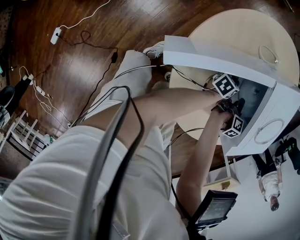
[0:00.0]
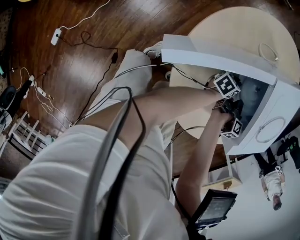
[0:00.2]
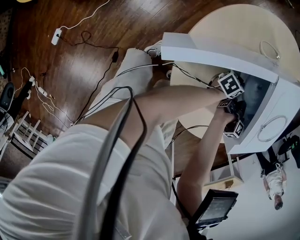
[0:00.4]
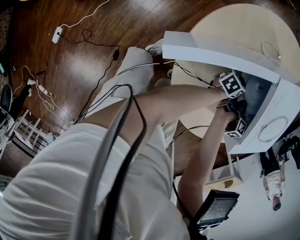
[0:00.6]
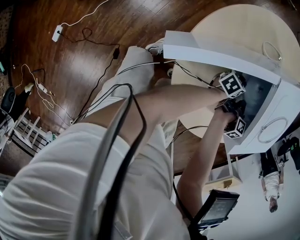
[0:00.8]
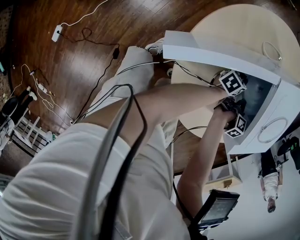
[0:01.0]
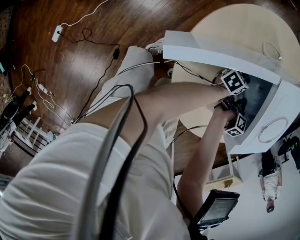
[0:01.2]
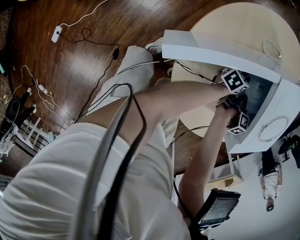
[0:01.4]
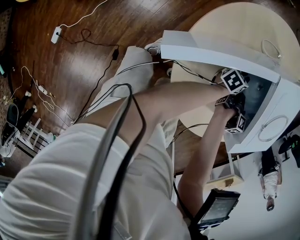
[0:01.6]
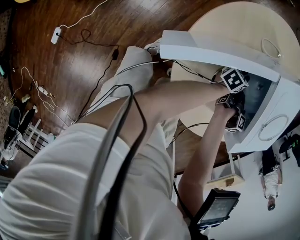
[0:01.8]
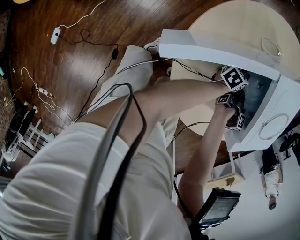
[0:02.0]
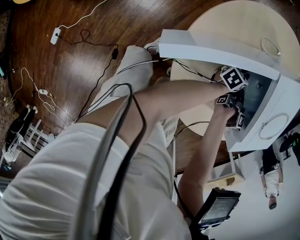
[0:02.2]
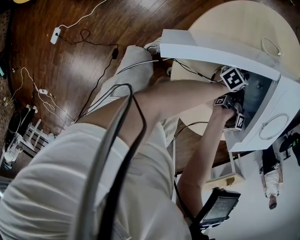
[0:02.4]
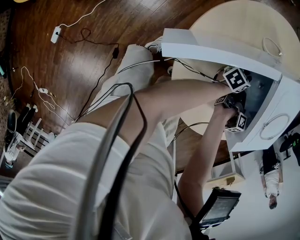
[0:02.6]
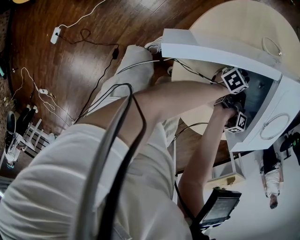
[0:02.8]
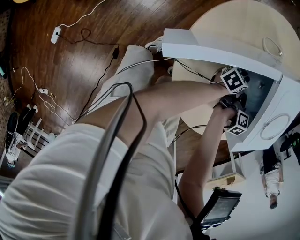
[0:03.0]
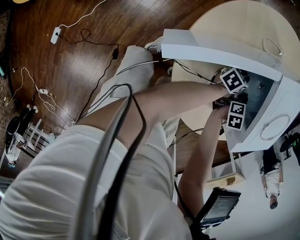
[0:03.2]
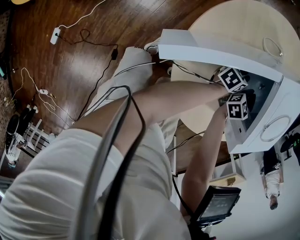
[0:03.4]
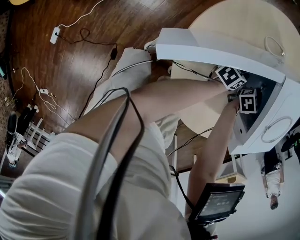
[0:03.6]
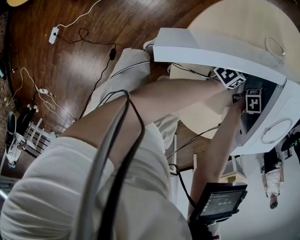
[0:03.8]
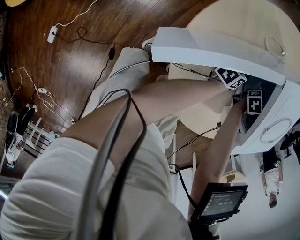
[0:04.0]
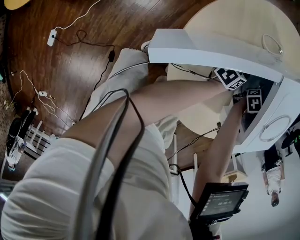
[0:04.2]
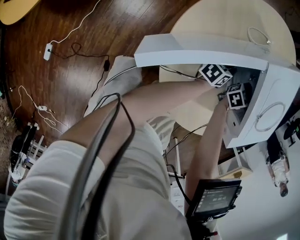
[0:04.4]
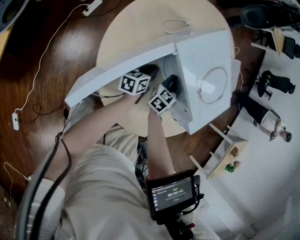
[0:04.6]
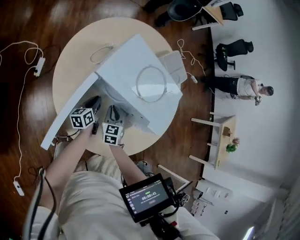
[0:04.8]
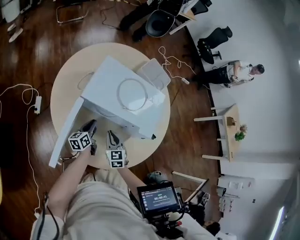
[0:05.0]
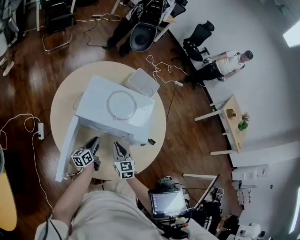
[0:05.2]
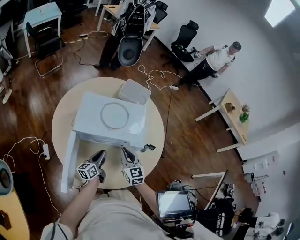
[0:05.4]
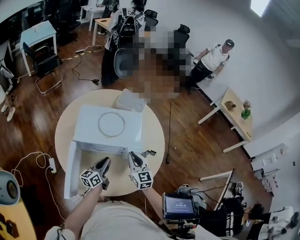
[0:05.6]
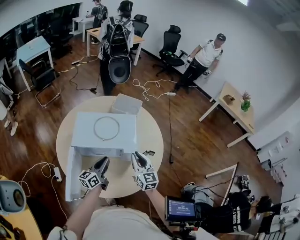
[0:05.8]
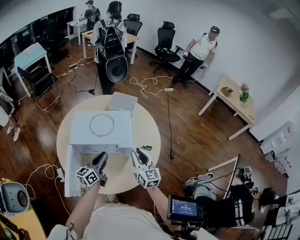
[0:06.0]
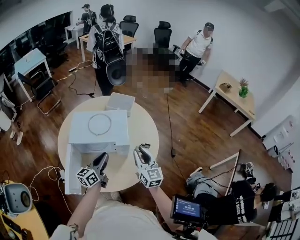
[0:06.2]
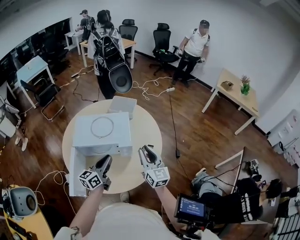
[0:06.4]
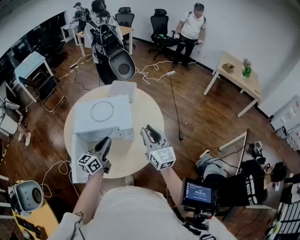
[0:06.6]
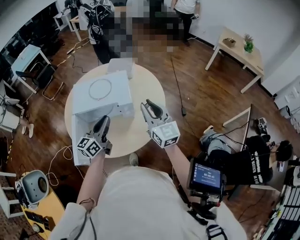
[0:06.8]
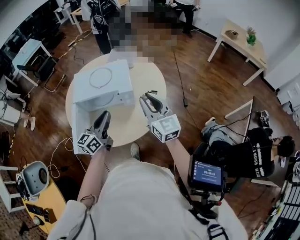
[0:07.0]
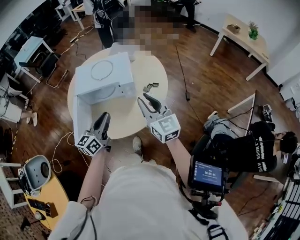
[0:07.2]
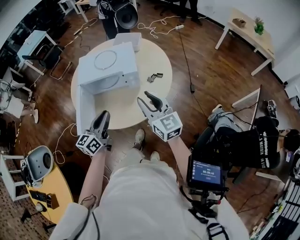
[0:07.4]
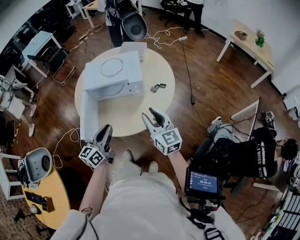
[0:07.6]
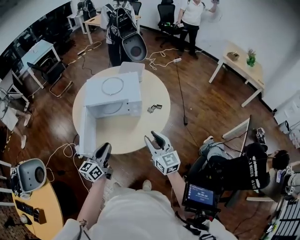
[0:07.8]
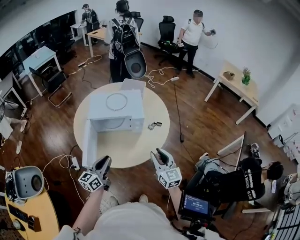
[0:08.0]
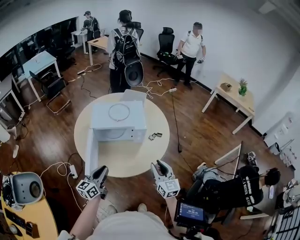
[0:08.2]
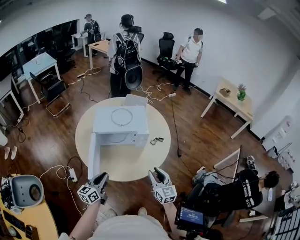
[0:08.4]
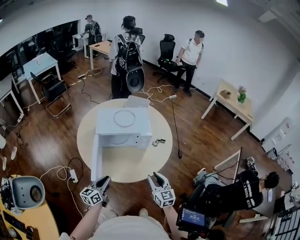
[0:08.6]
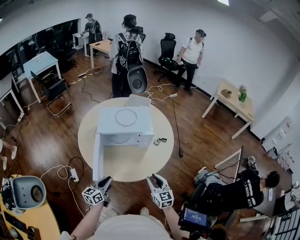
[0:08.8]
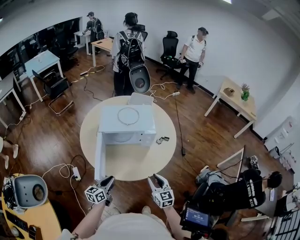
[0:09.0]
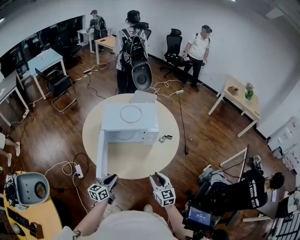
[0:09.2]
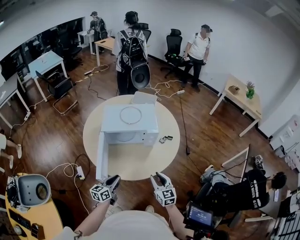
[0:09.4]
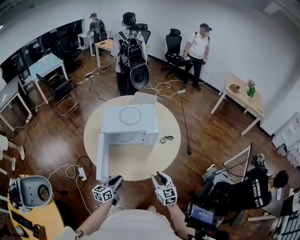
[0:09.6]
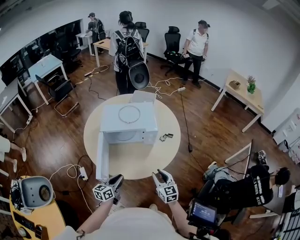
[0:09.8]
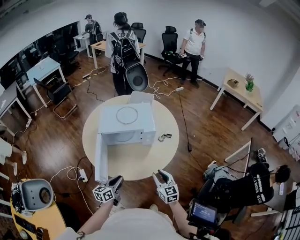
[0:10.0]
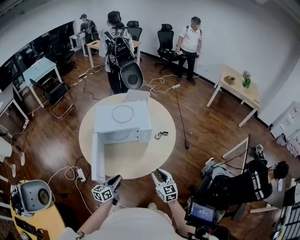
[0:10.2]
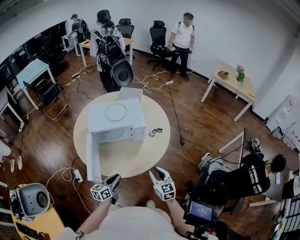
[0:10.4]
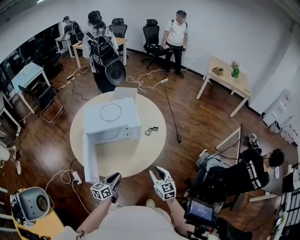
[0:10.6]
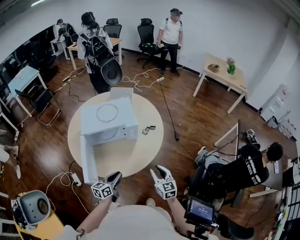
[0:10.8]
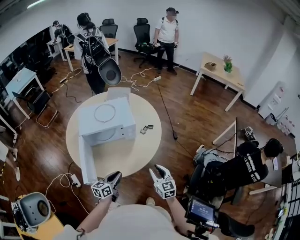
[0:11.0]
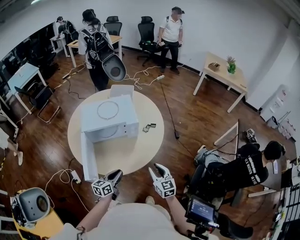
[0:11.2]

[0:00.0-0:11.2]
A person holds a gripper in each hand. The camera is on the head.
0.0 to 1.6 s: The right gripper closes its fingers.
1.6 to 3.2 s: The right gripper twists roughly 60 degrees counterclockwise, seen from behind.
3.2 to 4.8 s: The right gripper shifts about 10 cm to the left and upward, and goes forward and returns, some 10 cm each way. The left gripper moves upward and to the left, approximately 10 cm.
4.8 to 6.4 s: The two grippers go approximately 50 cm upward and to the right. The right gripper tilts its fingers some 40 degrees upward. Meanwhile the left gripper swivels roughly 50 degrees.
6.4 to 8.0 s: The right gripper goes about 20 cm backward. The left gripper goes some 25 cm backward and to the left.
8.0 to 9.6 s: The left gripper shifts roughly 10 cm downward, while the right gripper is displaced downward and to the left by some 15 cm.
9.6 to 11.2 s: The two grippers go about 10 cm to the right.

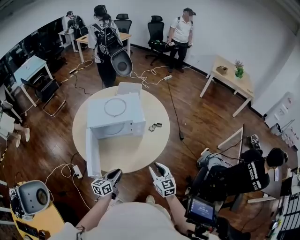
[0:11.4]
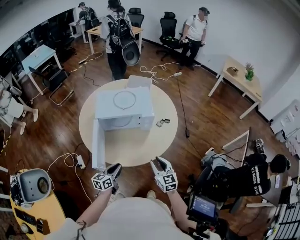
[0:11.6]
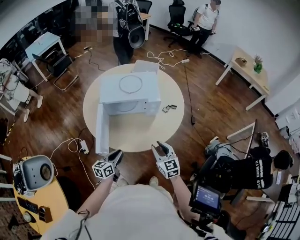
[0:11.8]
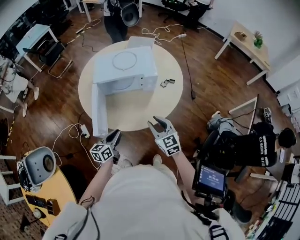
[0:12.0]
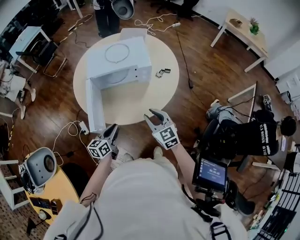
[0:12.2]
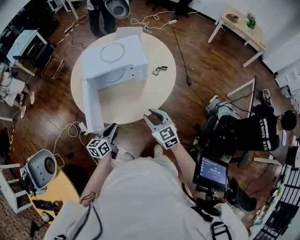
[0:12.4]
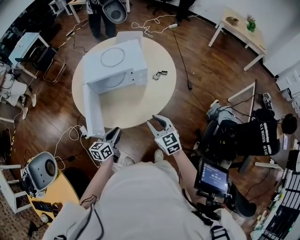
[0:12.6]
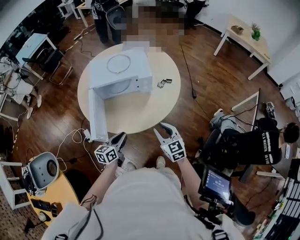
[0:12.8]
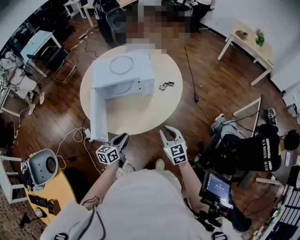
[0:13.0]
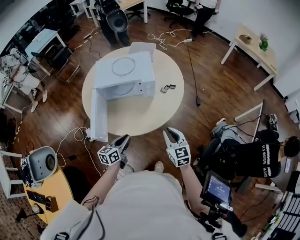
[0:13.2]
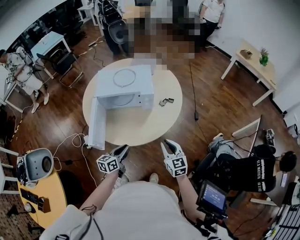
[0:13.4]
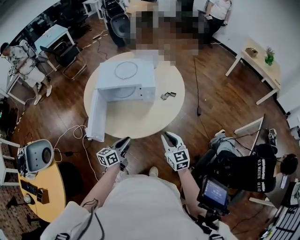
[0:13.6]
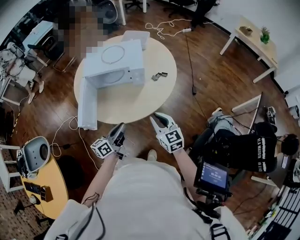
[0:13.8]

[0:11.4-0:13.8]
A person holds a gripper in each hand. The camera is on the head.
12.6 to 13.8 s: The left gripper goes about 10 cm to the right and upward, and turns by approximately 20 degrees; the right gripper heads to the right, covering roughly 10 cm.

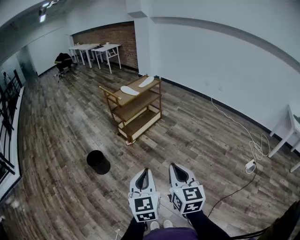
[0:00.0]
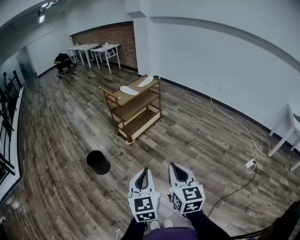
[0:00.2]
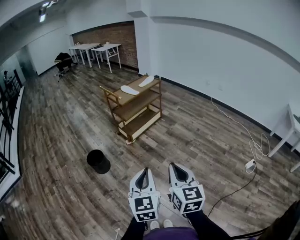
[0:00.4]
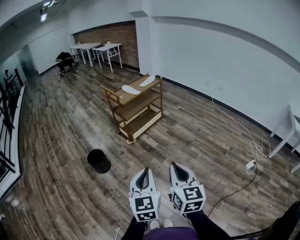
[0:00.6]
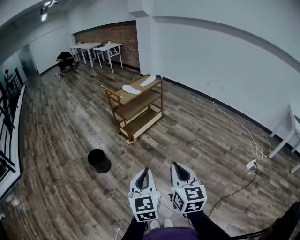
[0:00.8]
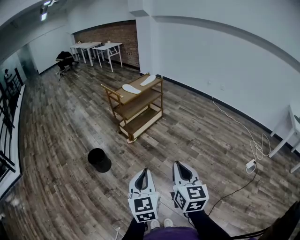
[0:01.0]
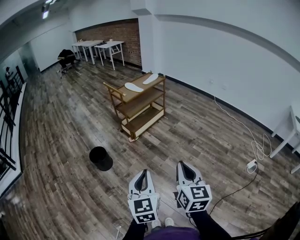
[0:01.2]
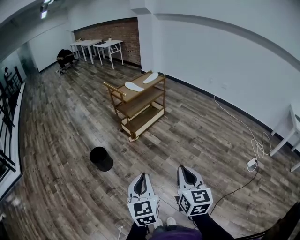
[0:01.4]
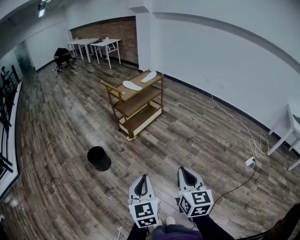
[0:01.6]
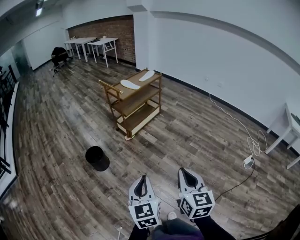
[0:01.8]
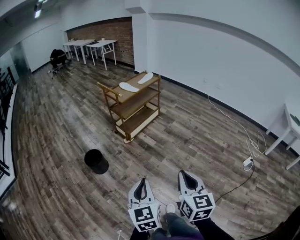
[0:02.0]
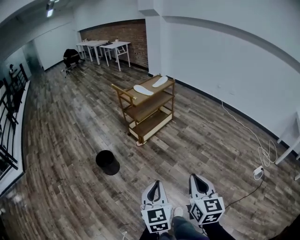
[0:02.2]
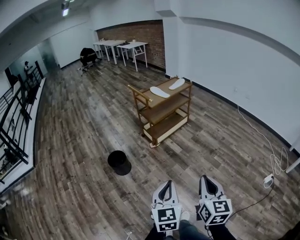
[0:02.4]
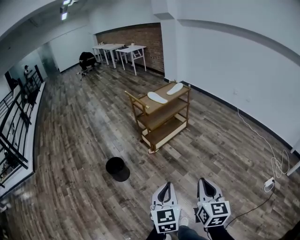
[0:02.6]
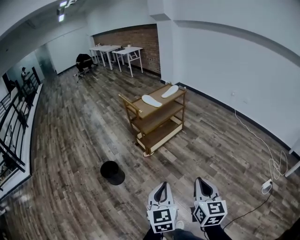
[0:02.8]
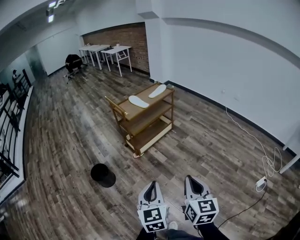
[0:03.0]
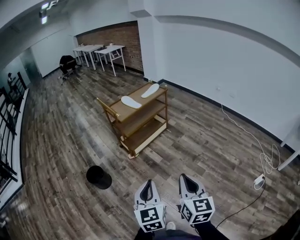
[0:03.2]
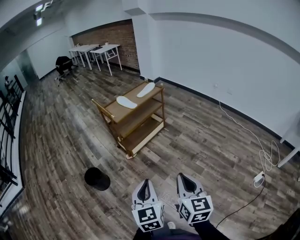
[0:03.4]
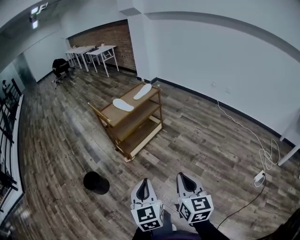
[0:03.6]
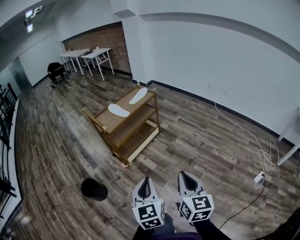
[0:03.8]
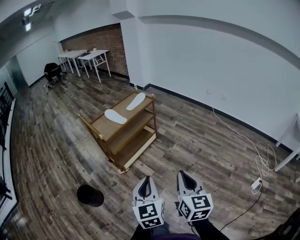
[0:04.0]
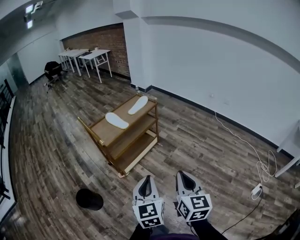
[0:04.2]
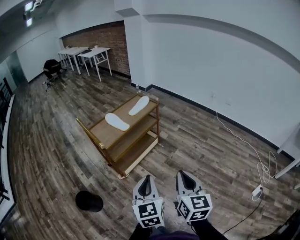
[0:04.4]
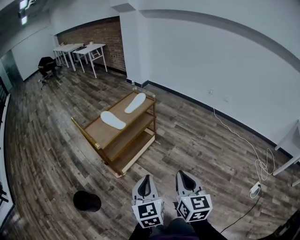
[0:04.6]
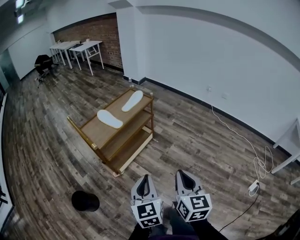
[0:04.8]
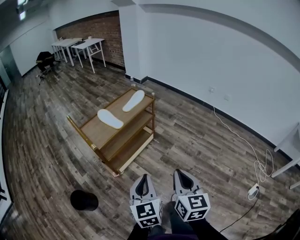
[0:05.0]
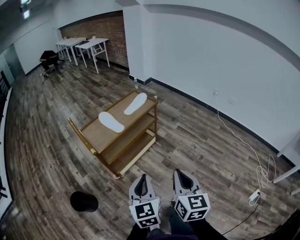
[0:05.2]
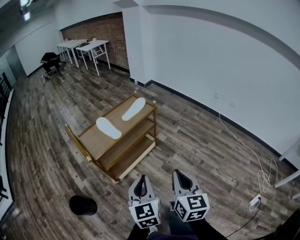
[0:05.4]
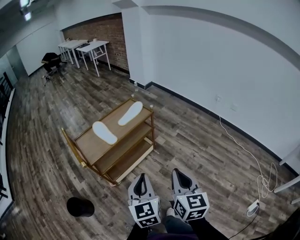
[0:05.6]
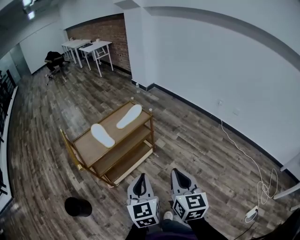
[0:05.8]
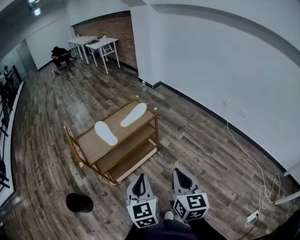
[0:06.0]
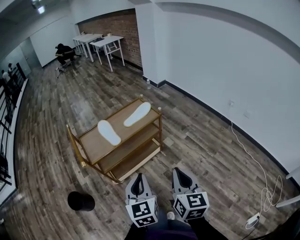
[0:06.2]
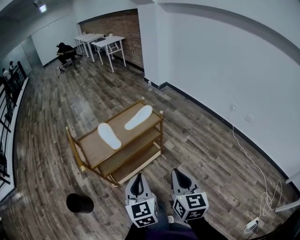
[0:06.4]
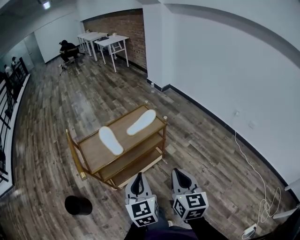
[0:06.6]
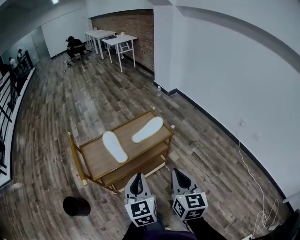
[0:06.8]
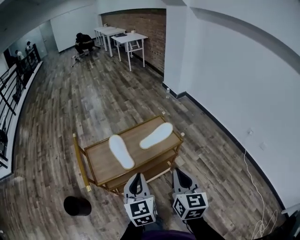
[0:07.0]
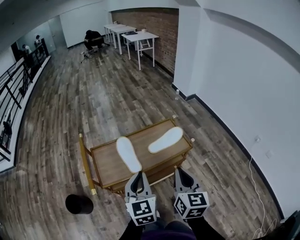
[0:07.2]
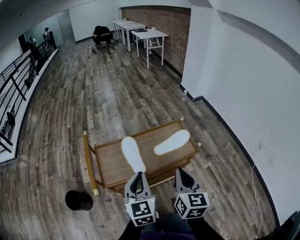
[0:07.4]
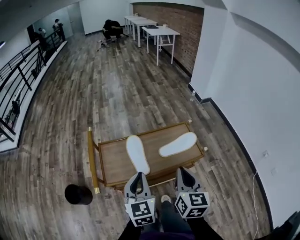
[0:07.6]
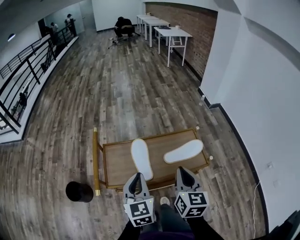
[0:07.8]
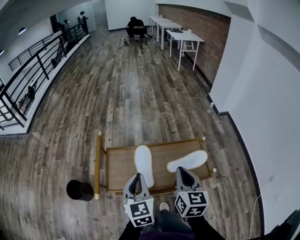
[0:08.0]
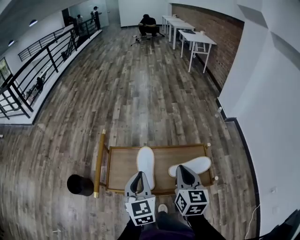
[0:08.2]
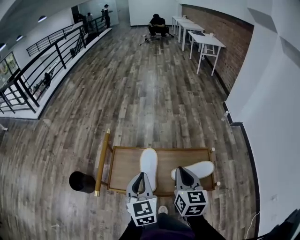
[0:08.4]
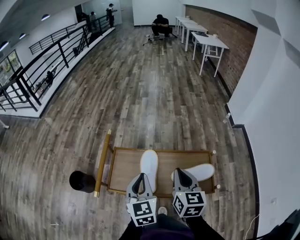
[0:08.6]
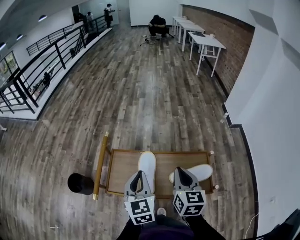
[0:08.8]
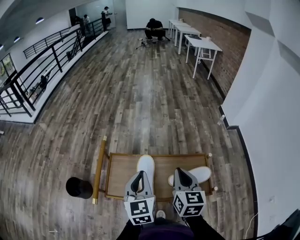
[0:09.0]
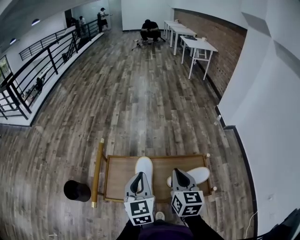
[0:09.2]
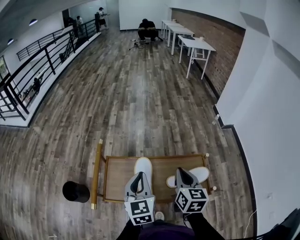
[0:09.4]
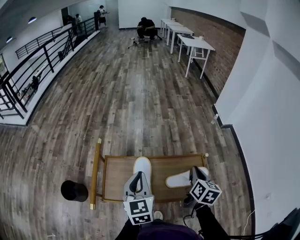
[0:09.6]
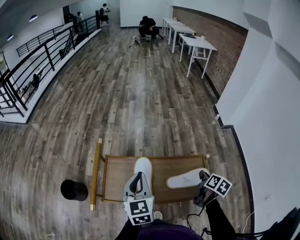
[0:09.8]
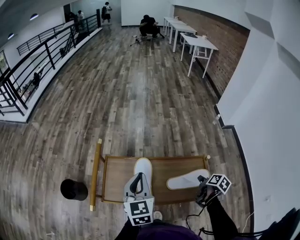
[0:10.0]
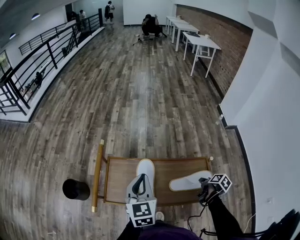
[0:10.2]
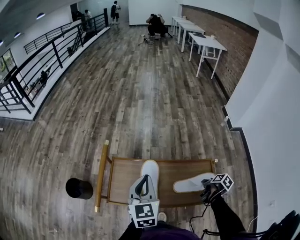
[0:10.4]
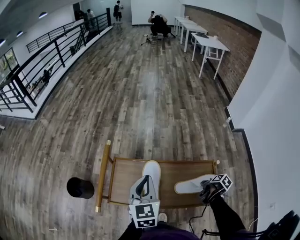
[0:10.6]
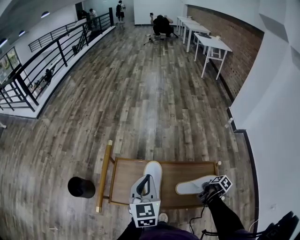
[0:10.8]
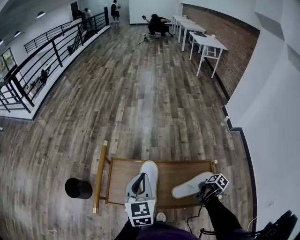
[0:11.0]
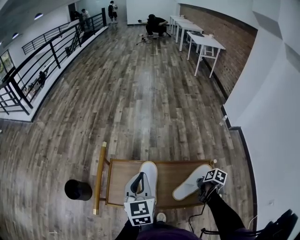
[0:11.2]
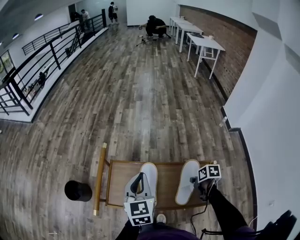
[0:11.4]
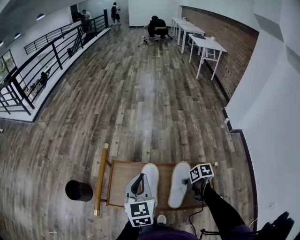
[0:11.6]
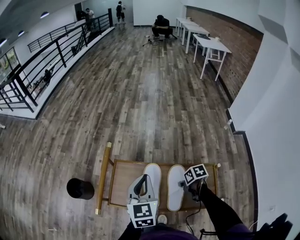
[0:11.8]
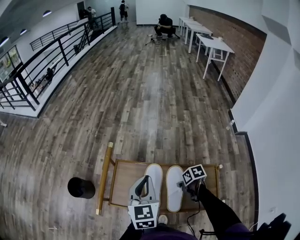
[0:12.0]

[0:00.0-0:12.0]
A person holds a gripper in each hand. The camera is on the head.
0.0 to 1.6 s: The left gripper moves to the left, about 5 cm.
1.6 to 3.0 s: The left gripper shifts about 20 cm forward and to the right. Meanwhile the right gripper travels forward by some 20 cm.
3.0 to 4.4 s: Both grippers travel together forward, about 30 cm.
4.4 to 6.0 s: Both grippers move forward and to the right, some 25 cm.
6.0 to 7.6 s: The right gripper moves forward, about 35 cm, and changes its angle by about 20 degrees. Meanwhile the left gripper travels forward and to the left by some 35 cm, and swivels some 20 degrees.
7.6 to 9.0 s: Both grippers travel together forward, roughly 15 cm.
9.0 to 10.4 s: The right gripper heads downward and to the right, covering about 30 cm, rolls clockwise, seen from behind, by some 60 degrees, and opens.
10.4 to 12.0 s: The right gripper changes place by roughly 20 cm, rolls counterclockwise, seen from behind, by approximately 60 degrees, and closes up.
